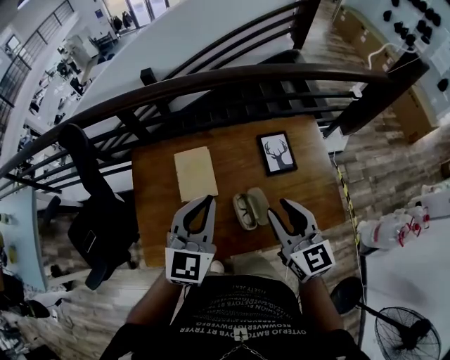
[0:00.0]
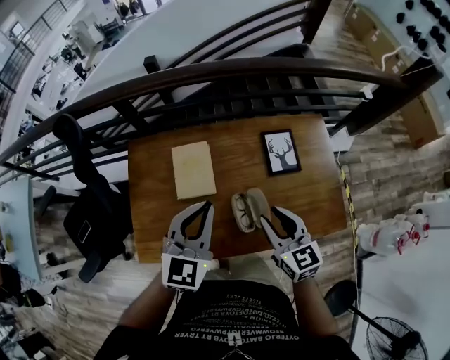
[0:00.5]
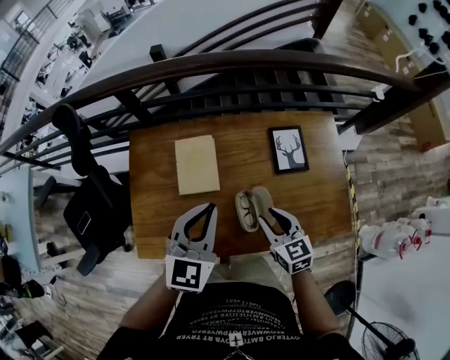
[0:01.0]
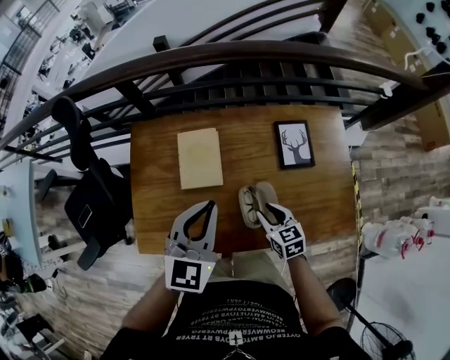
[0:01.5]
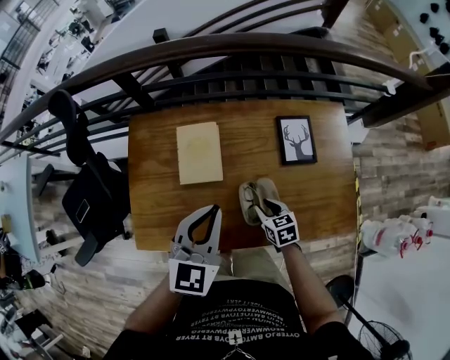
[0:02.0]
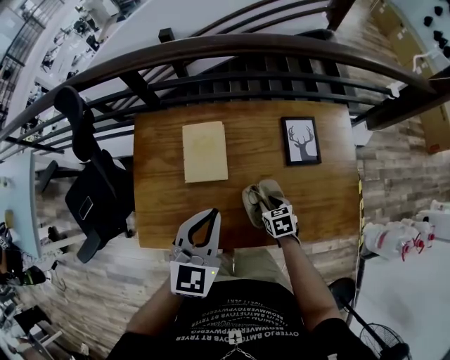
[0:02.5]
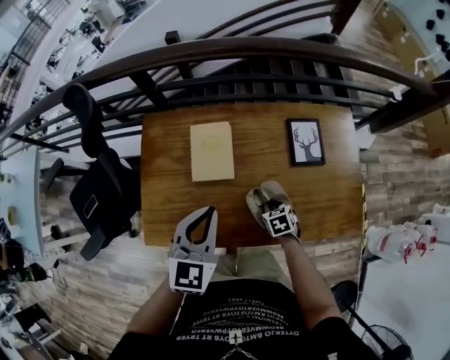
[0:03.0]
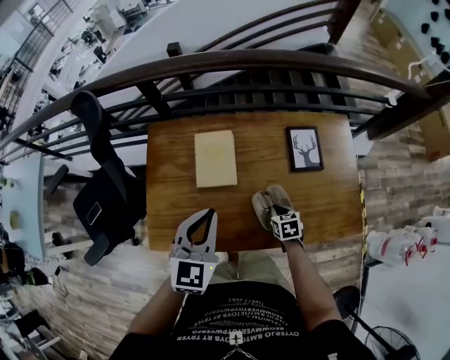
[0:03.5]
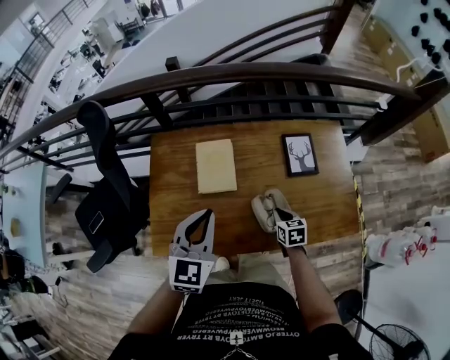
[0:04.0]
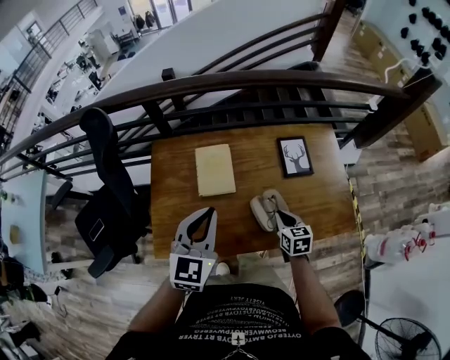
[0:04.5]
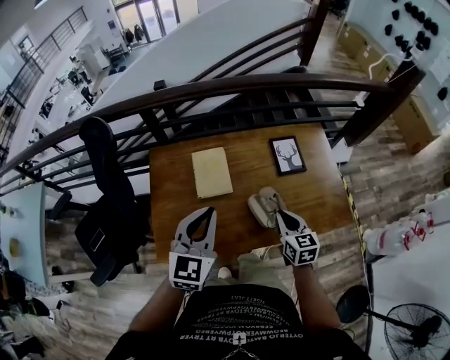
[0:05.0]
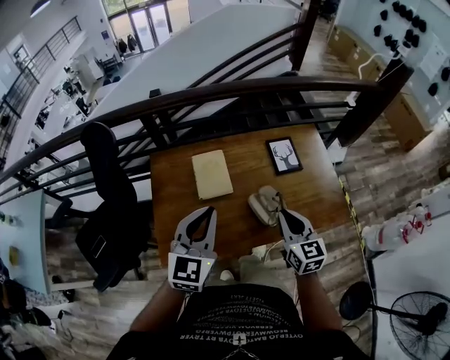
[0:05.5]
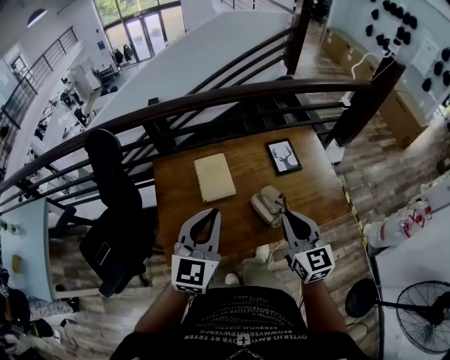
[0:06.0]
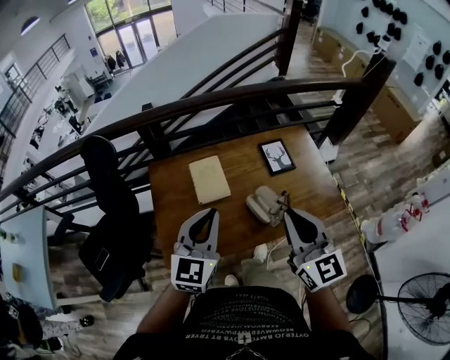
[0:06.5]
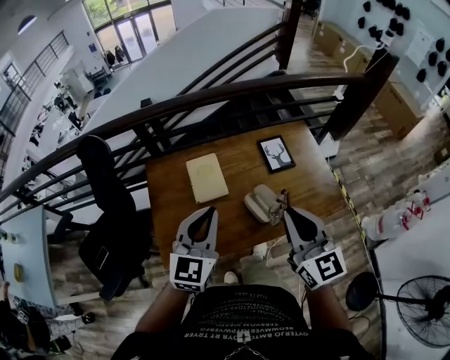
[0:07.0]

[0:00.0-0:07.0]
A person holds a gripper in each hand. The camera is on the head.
0.0 to 2.0 s: The left gripper goes some 10 cm downward, while the right gripper shifts roughly 35 cm downward, and angles its fingers downward, by about 40 degrees.
2.0 to 3.5 s: The right gripper closes up, while the left gripper heads to the left, covering roughly 5 cm.
3.5 to 5.0 s: The left gripper moves upward, about 5 cm; the right gripper travels upward by roughly 20 cm, and swivels approximately 30 degrees.
5.0 to 7.0 s: The right gripper shifts roughly 25 cm upward, and changes its angle by roughly 30 degrees. Meanwhile the left gripper shifts by about 5 cm.

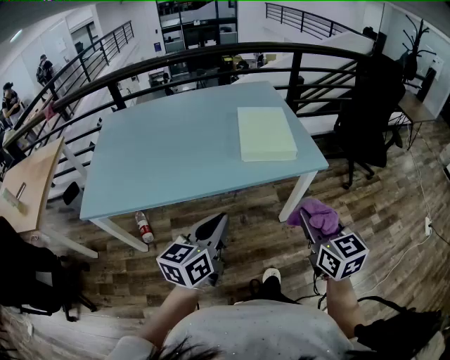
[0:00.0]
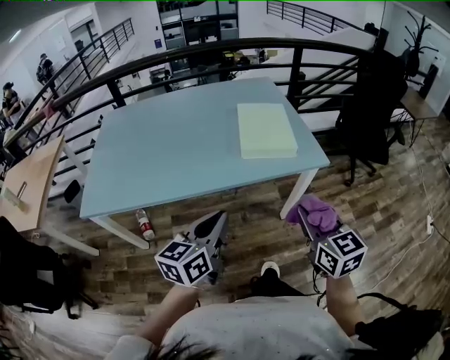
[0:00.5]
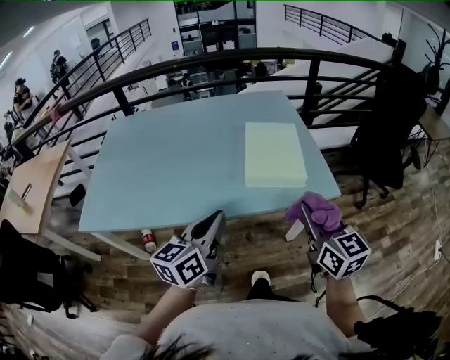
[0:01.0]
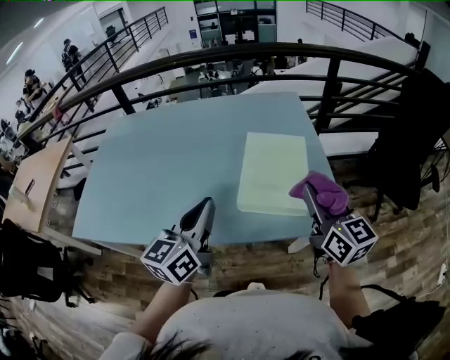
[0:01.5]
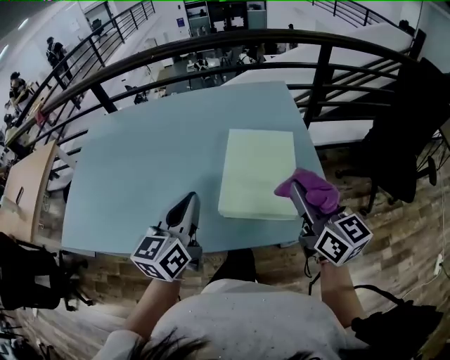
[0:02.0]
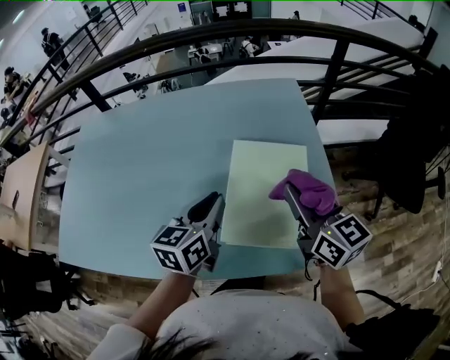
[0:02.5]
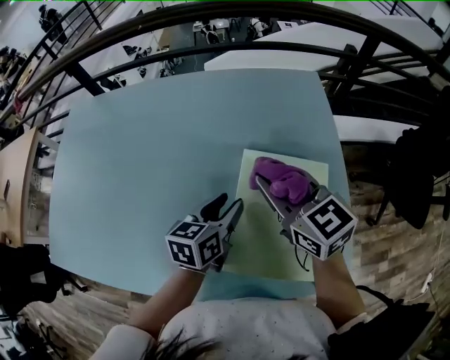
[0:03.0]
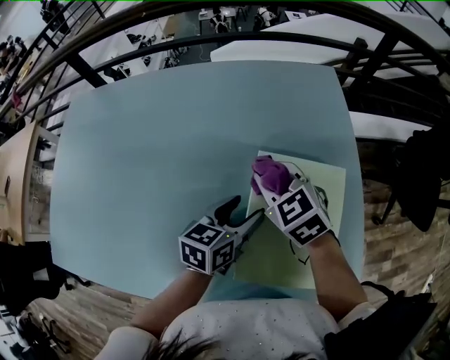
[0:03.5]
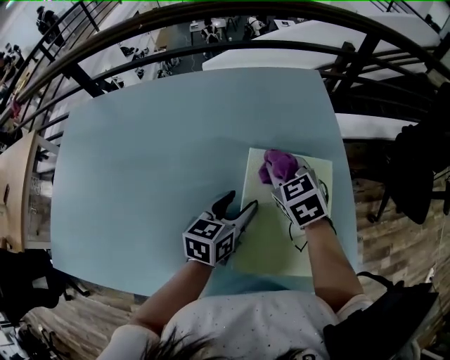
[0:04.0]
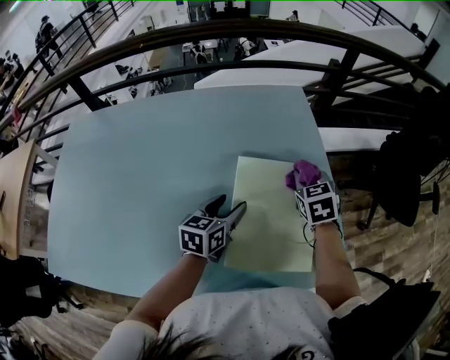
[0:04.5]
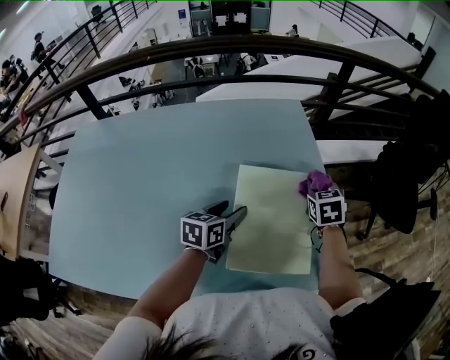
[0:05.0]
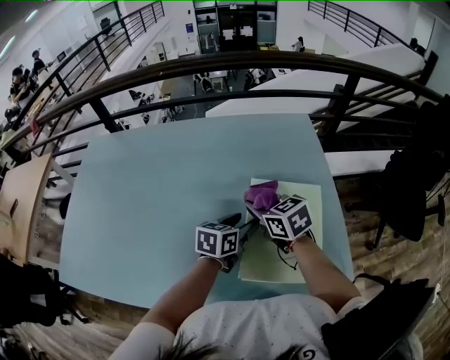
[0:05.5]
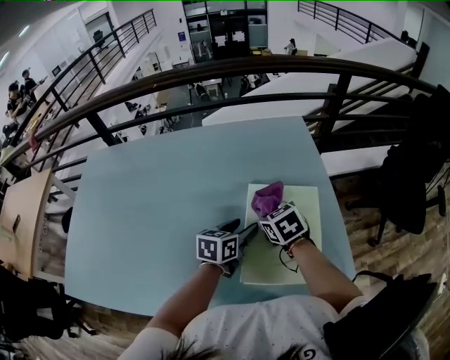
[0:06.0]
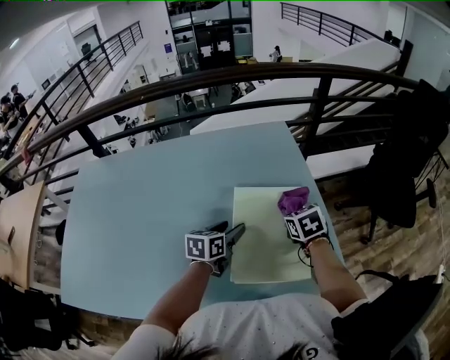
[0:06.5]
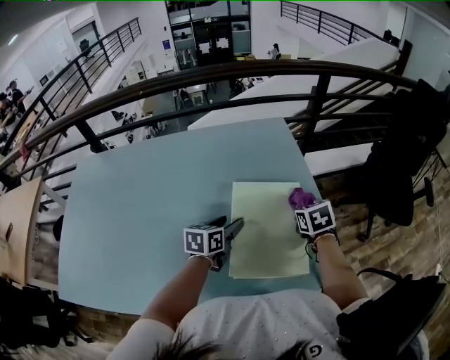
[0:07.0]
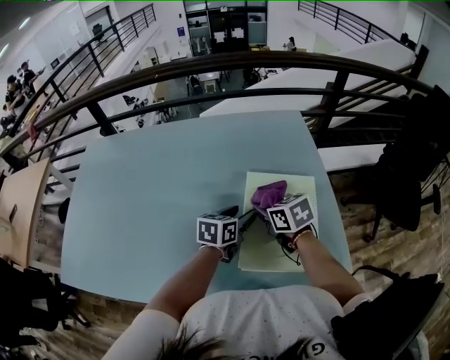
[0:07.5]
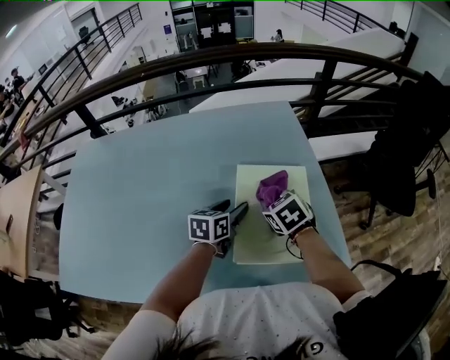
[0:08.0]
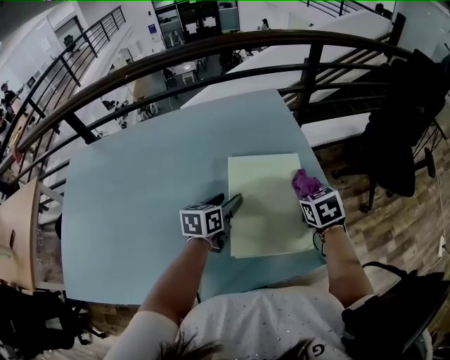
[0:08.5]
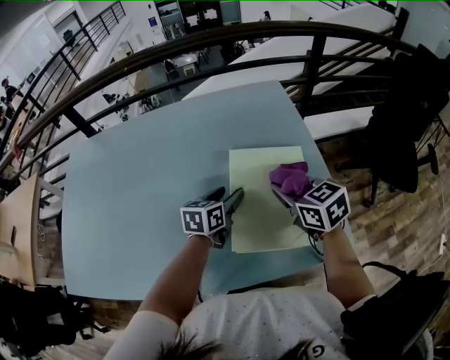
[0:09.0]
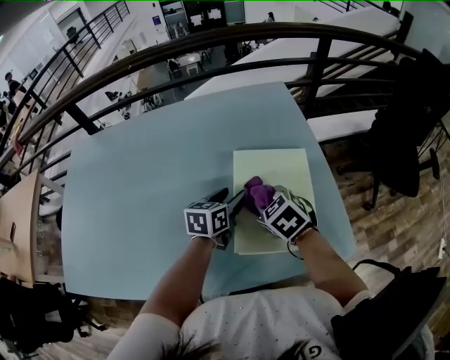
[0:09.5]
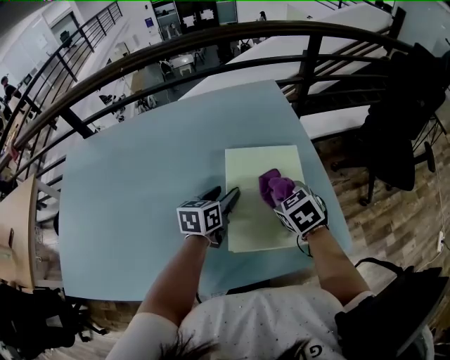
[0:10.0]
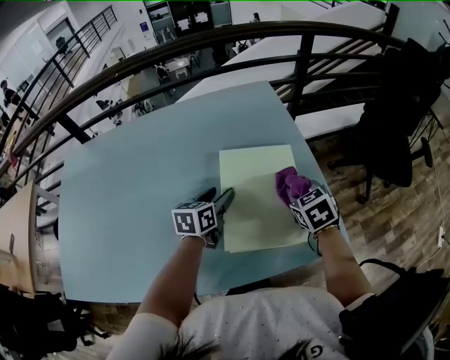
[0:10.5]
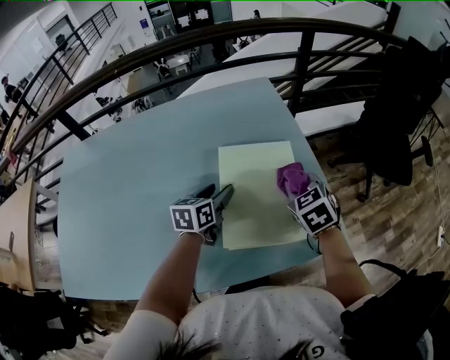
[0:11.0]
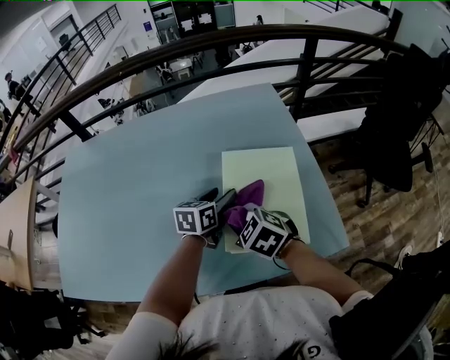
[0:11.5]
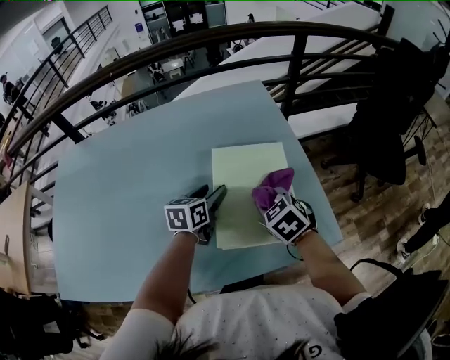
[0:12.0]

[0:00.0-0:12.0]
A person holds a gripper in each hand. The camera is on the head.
0.0 to 2.0 s: Both grippers travel together forward, some 35 cm. The right gripper swivels some 20 degrees; the left gripper swivels roughly 20 degrees.
2.0 to 4.0 s: Both grippers move forward and downward, some 30 cm. The right gripper angles its fingers downward, by roughly 40 degrees; the left gripper rotates approximately 20 degrees, and opens up.
6.0 to 8.0 s: The right gripper moves left and right over some 20 cm, changing direction 2 times.
8.0 to 10.0 s: The right gripper goes left and right, approximately 15 cm each way, reversing 2 times.
10.0 to 12.0 s: The right gripper moves left and right over roughly 20 cm, changing direction 2 times.

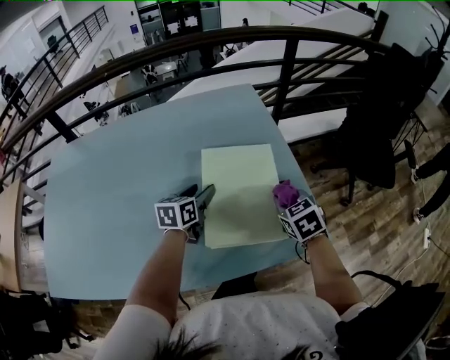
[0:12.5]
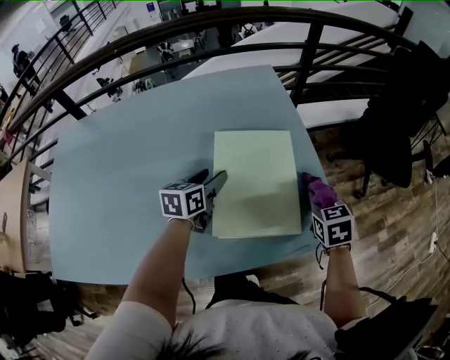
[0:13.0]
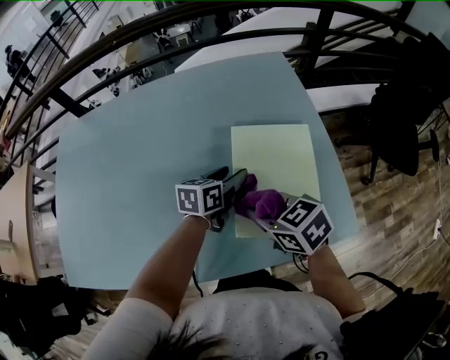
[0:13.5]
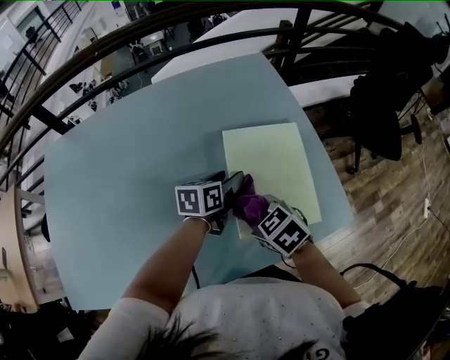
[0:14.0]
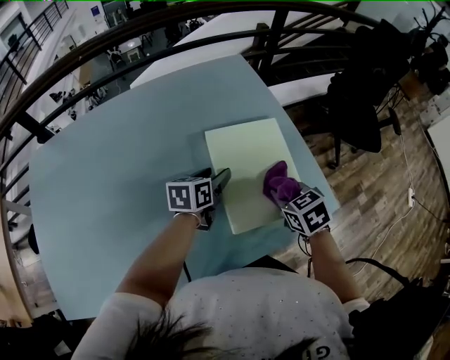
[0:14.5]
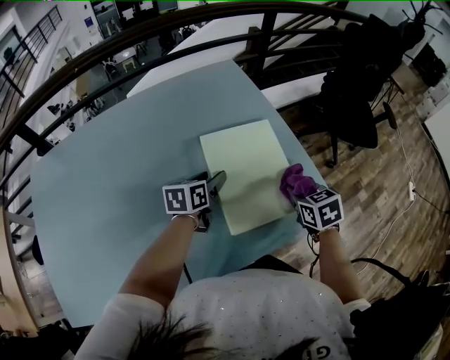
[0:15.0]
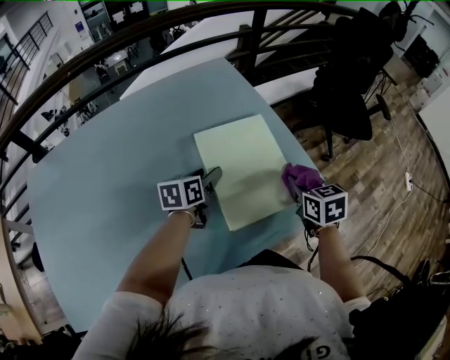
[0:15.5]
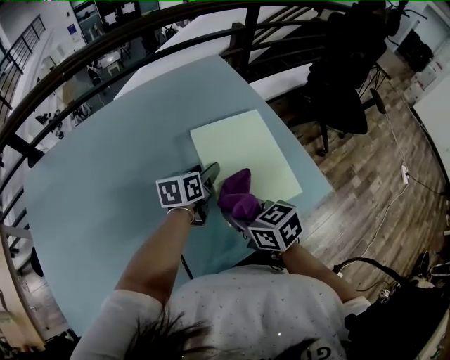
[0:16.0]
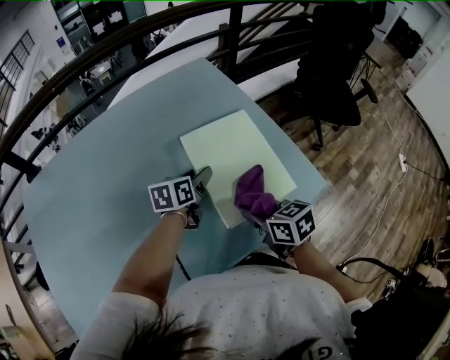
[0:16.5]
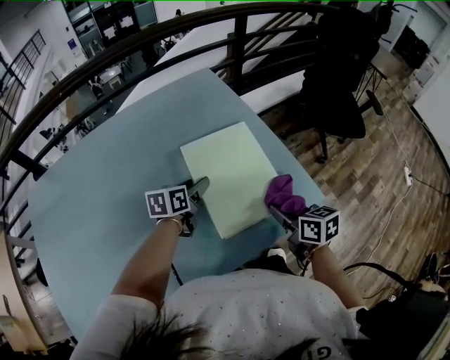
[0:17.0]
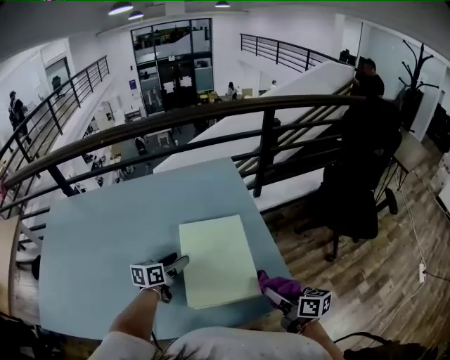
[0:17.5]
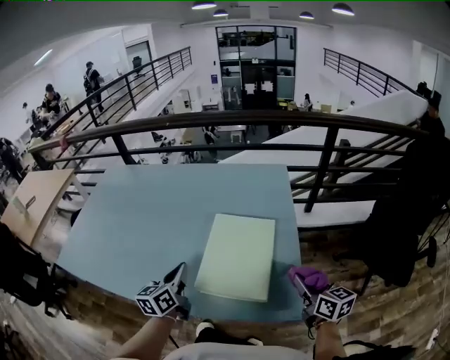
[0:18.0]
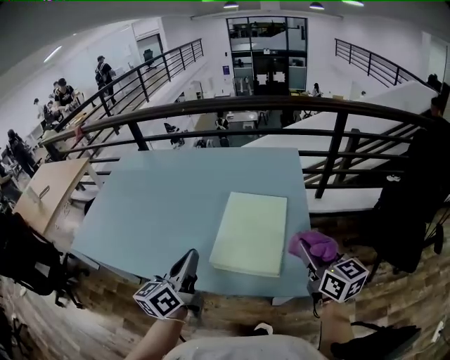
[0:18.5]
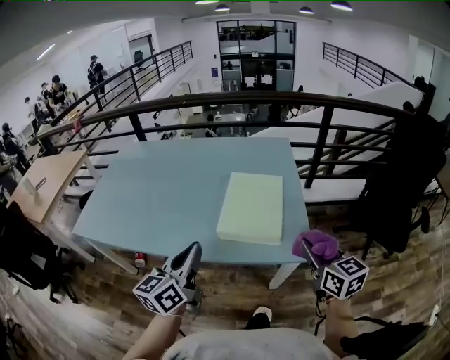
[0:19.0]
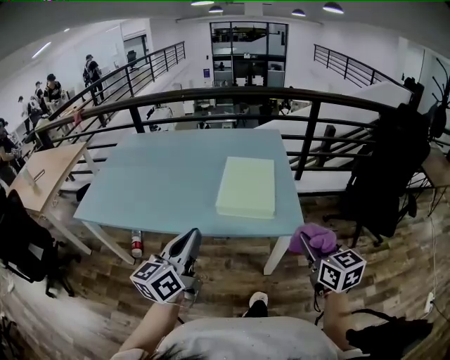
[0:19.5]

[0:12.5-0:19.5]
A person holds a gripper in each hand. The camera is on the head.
12.5 to 14.5 s: The right gripper swings left and right, some 30 cm each way, with 2 reversals.
14.5 to 16.0 s: The right gripper heads to the left and backward, covering about 15 cm, and rotates roughly 30 degrees.
16.0 to 17.5 s: The right gripper goes approximately 30 cm to the right, and changes its angle by about 30 degrees.
17.5 to 19.5 s: The left gripper travels backward and upward by about 50 cm, rotates approximately 40 degrees, and closes up, while the right gripper travels backward and upward by some 30 cm, and rotates approximately 40 degrees.

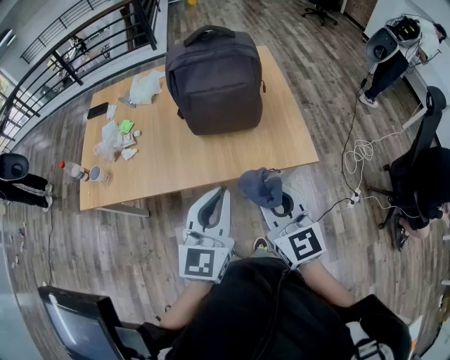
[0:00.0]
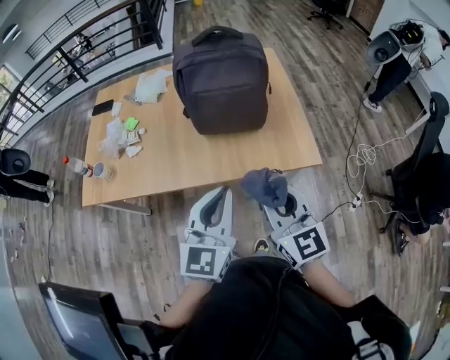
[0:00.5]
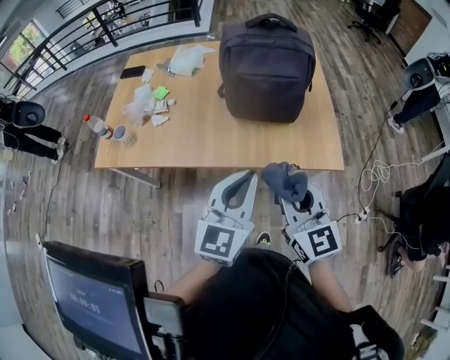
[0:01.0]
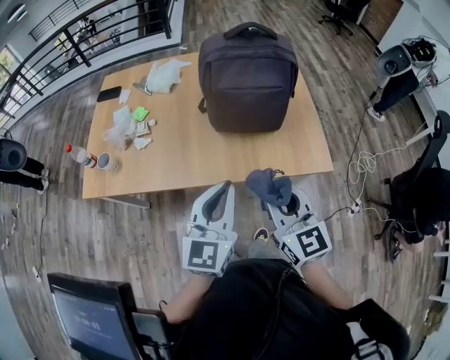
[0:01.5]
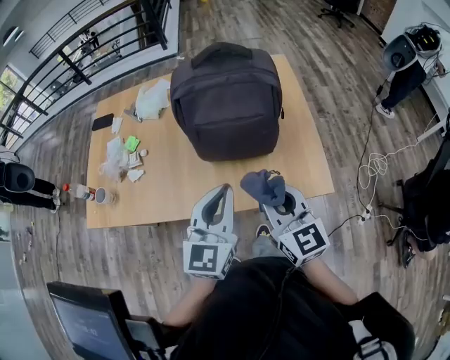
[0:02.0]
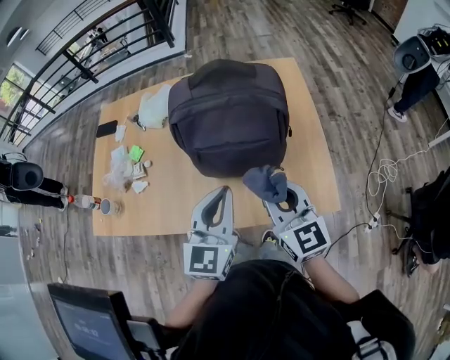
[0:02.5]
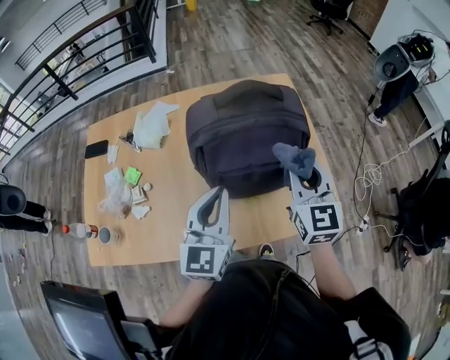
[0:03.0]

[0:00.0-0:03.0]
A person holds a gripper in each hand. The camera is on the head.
0.0 to 1.5 s: The two grippers go about 5 cm to the left.
1.5 to 3.0 s: Both grippers travel together forward, about 30 cm. The right gripper swivels about 20 degrees.
